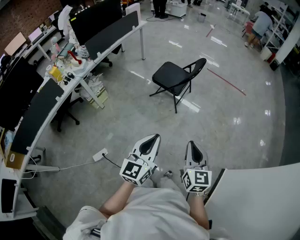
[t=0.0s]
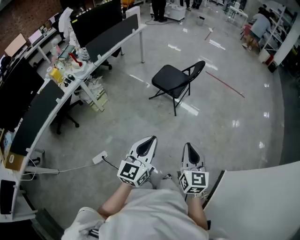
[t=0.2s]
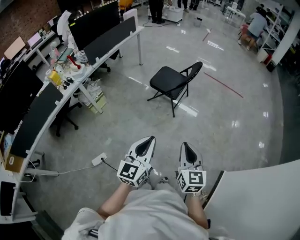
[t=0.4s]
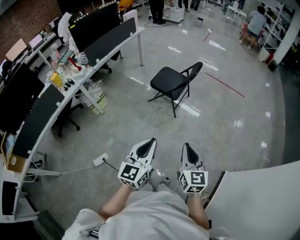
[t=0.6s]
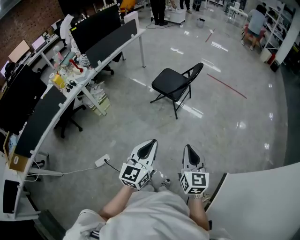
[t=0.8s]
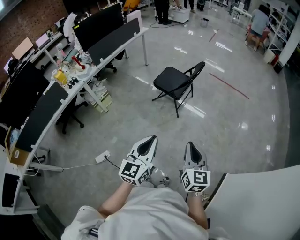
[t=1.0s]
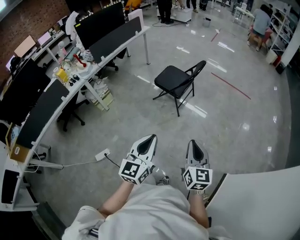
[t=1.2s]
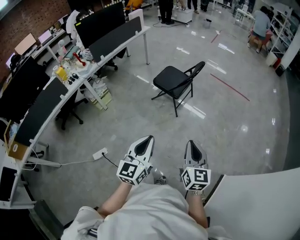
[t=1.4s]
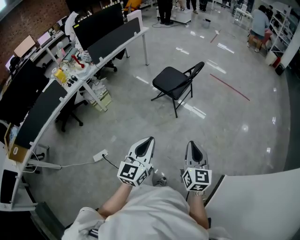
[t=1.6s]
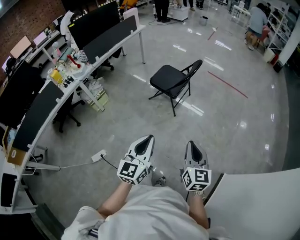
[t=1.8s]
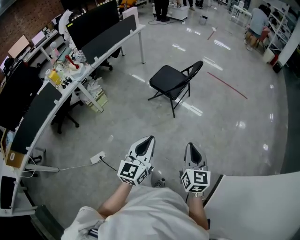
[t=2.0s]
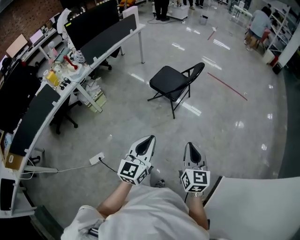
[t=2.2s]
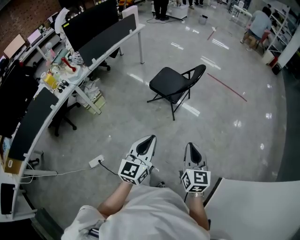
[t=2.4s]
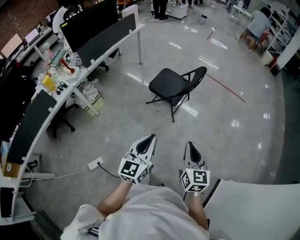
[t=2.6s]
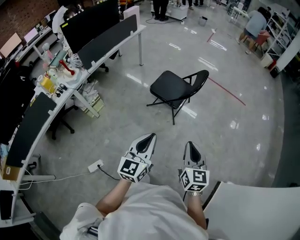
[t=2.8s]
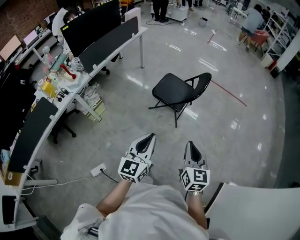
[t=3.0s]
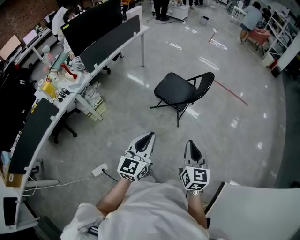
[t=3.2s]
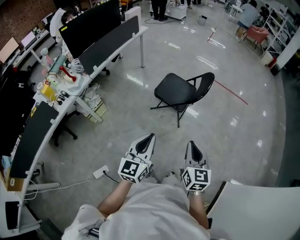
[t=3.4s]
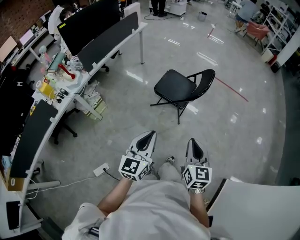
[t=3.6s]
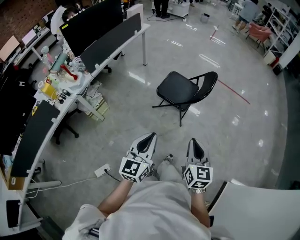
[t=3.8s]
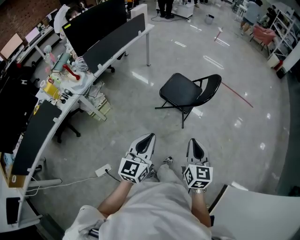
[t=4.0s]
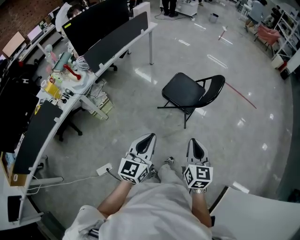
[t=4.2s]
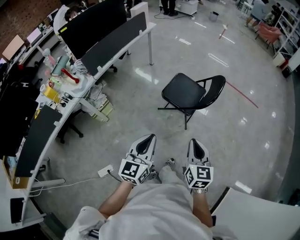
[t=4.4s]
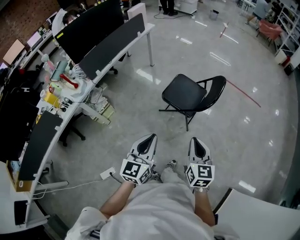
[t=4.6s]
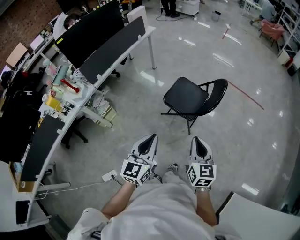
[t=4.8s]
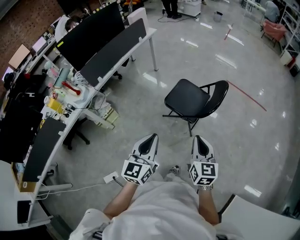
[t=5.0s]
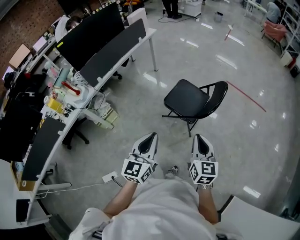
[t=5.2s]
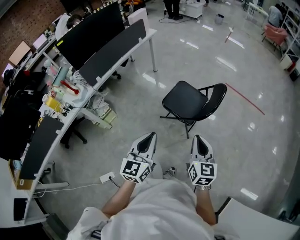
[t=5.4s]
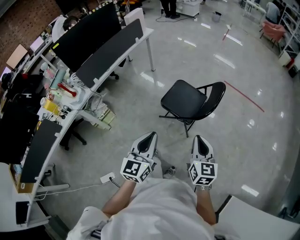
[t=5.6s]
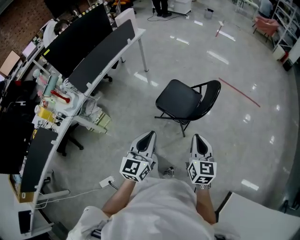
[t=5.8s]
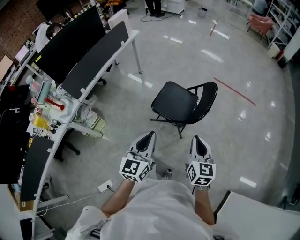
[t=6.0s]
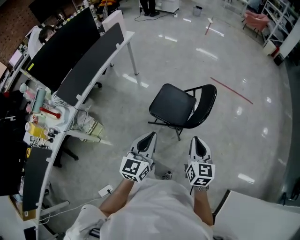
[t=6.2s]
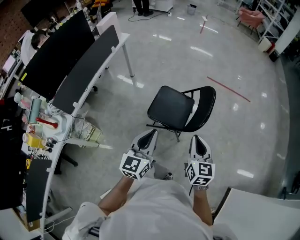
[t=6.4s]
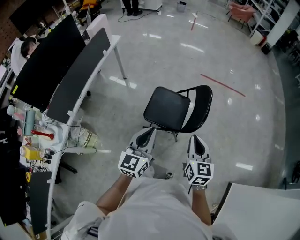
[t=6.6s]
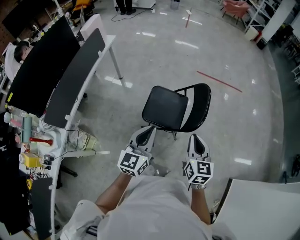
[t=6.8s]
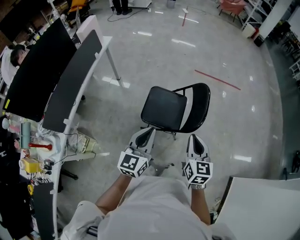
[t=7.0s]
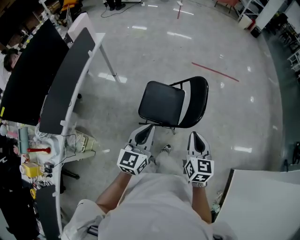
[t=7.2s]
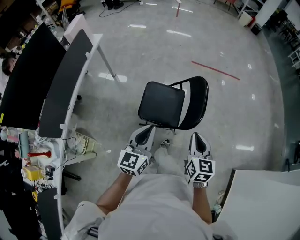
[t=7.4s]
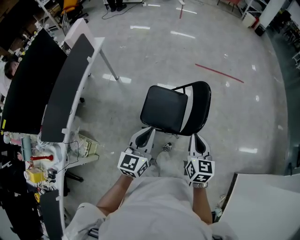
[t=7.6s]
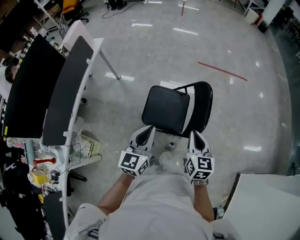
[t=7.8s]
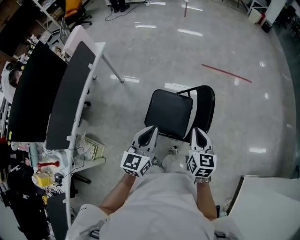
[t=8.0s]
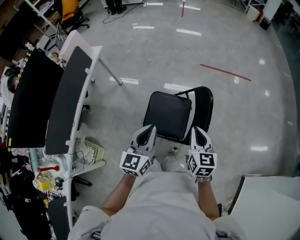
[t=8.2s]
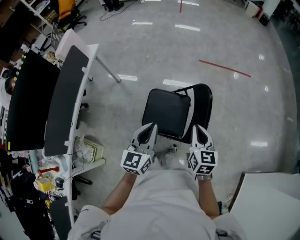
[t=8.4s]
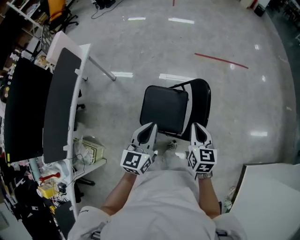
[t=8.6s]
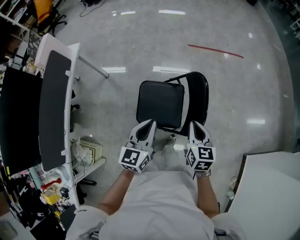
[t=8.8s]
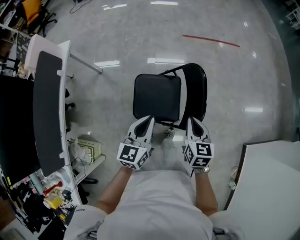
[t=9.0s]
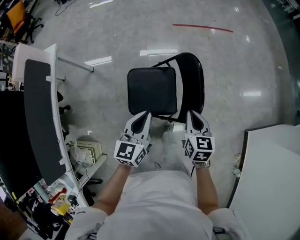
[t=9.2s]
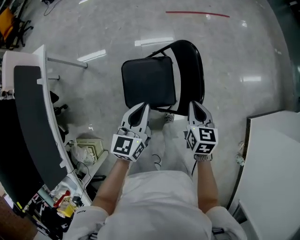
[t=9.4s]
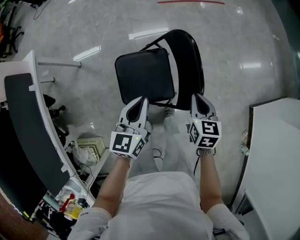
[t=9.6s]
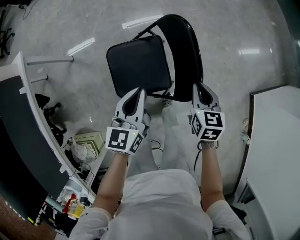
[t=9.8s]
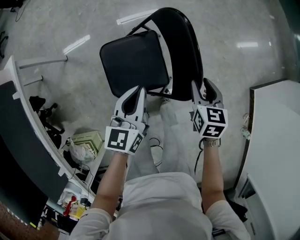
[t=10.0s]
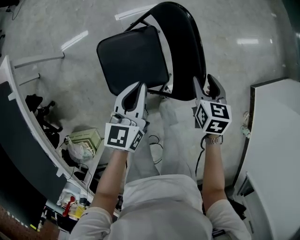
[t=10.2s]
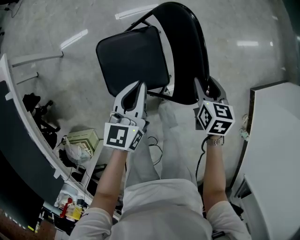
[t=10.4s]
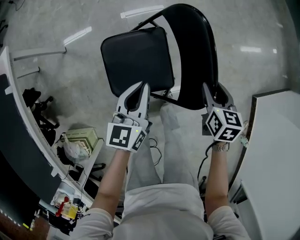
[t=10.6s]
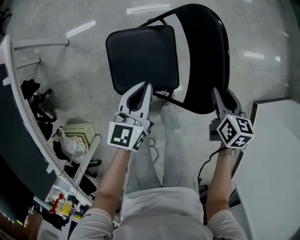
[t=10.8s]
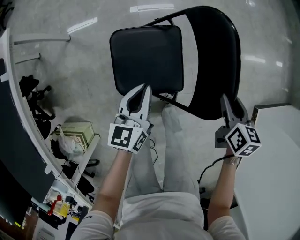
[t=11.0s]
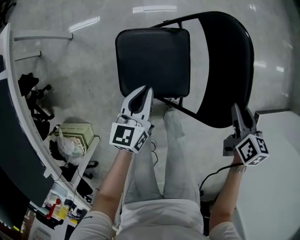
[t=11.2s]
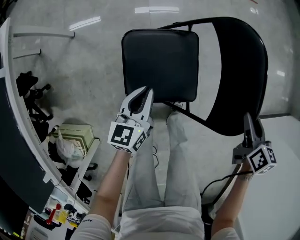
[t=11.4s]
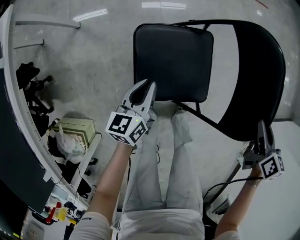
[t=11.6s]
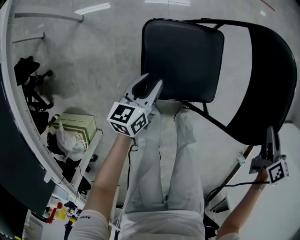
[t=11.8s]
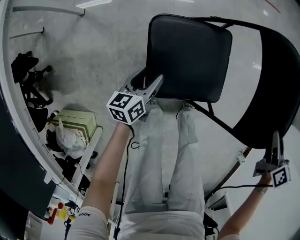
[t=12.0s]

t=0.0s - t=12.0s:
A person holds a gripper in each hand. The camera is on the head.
t=0.0s - t=1.6s: The grippers both shift to the right by some 10 cm.
t=1.6s - t=3.0s: Both grippers move forward and to the left, roughly 25 cm.
t=3.0s - t=4.4s: The two grippers go roughly 10 cm forward and to the left.
t=4.4s - t=6.0s: The left gripper heads forward, covering roughly 20 cm. The right gripper goes some 20 cm forward and to the right.
t=6.0s - t=7.6s: The right gripper goes roughly 20 cm forward and to the left, while the left gripper heads forward, covering approximately 20 cm.
t=7.6s - t=9.0s: Both grippers move forward and downward, roughly 15 cm.
t=9.0s - t=10.4s: The left gripper travels downward and forward by approximately 20 cm. The right gripper moves downward and to the right, roughly 25 cm, swivels about 20 degrees, and opens up.
t=10.4s - t=12.0s: The left gripper travels downward and to the left by some 40 cm, swivels about 30 degrees, and opens its fingers.

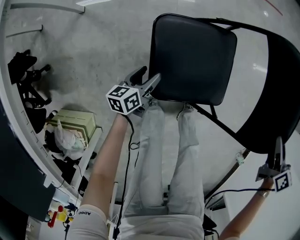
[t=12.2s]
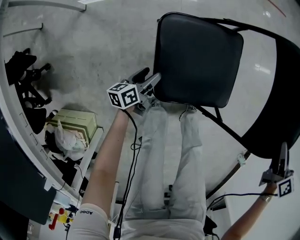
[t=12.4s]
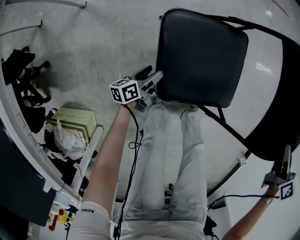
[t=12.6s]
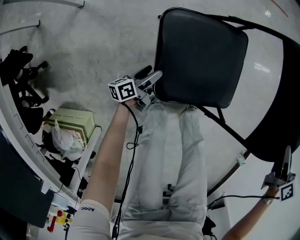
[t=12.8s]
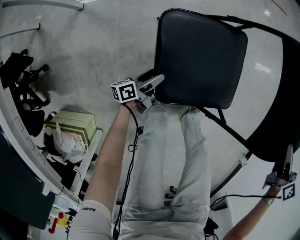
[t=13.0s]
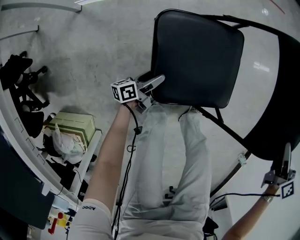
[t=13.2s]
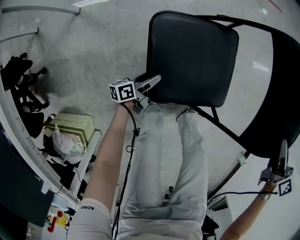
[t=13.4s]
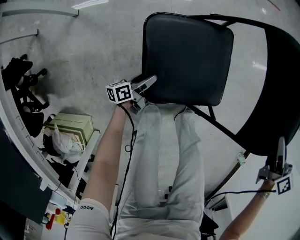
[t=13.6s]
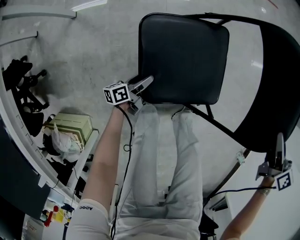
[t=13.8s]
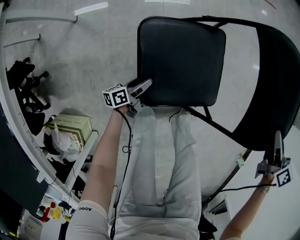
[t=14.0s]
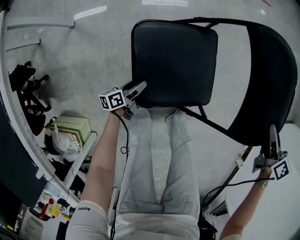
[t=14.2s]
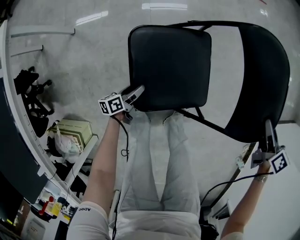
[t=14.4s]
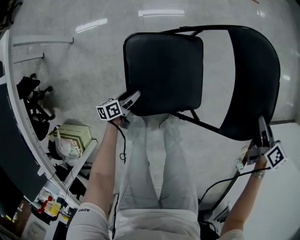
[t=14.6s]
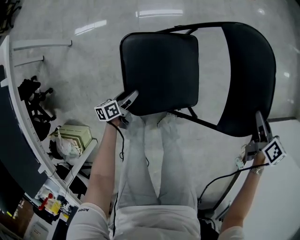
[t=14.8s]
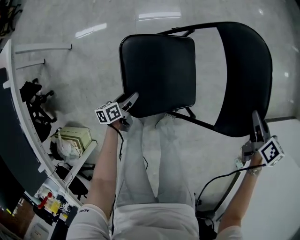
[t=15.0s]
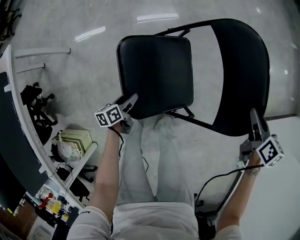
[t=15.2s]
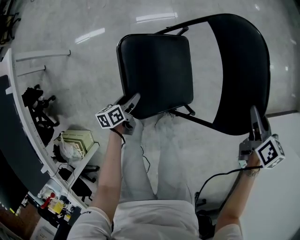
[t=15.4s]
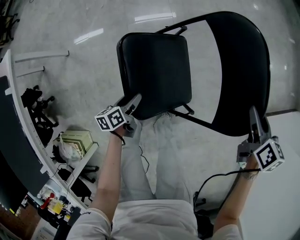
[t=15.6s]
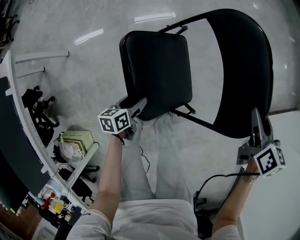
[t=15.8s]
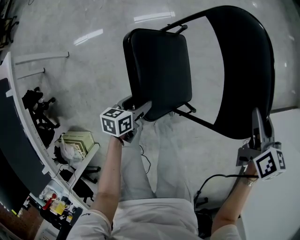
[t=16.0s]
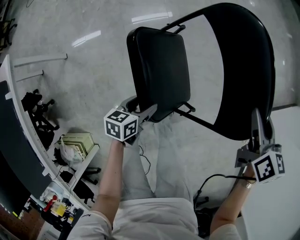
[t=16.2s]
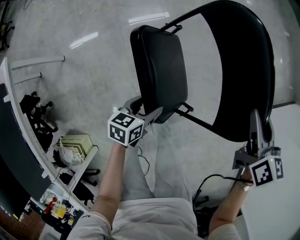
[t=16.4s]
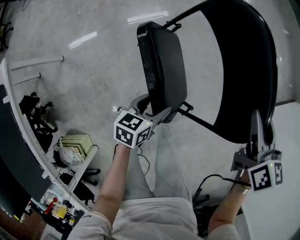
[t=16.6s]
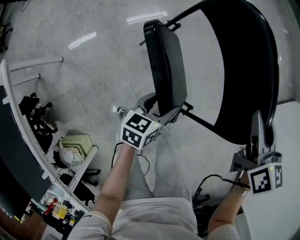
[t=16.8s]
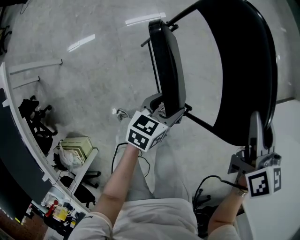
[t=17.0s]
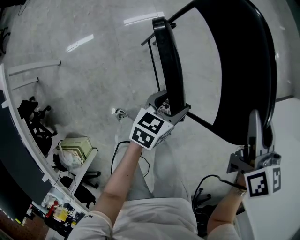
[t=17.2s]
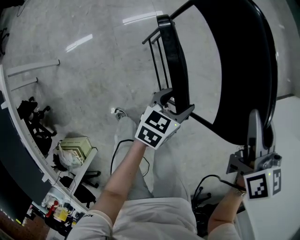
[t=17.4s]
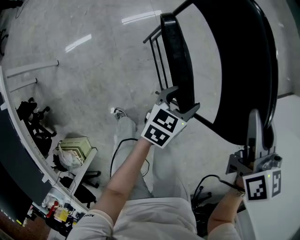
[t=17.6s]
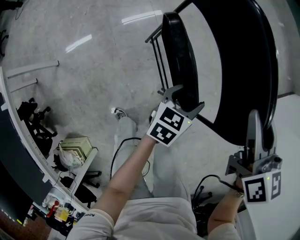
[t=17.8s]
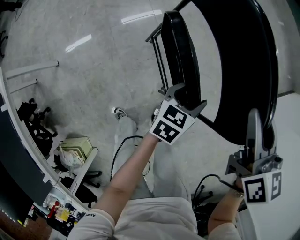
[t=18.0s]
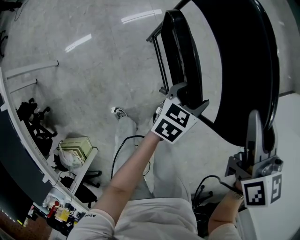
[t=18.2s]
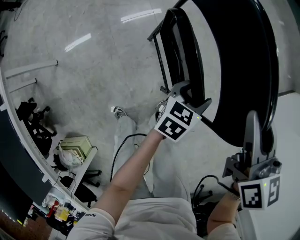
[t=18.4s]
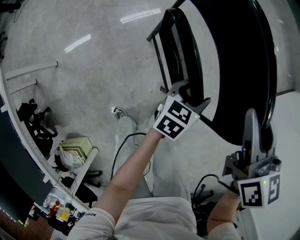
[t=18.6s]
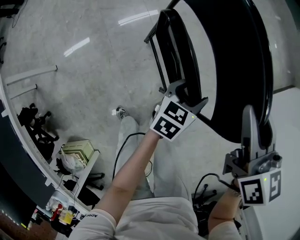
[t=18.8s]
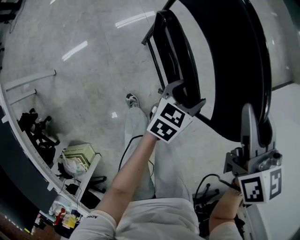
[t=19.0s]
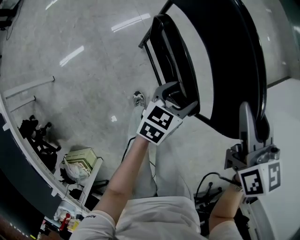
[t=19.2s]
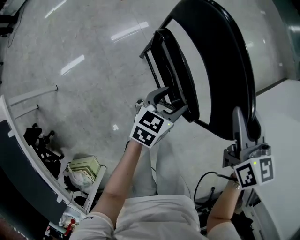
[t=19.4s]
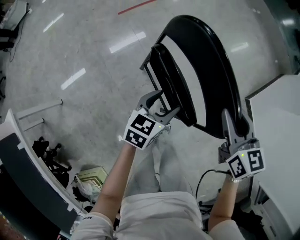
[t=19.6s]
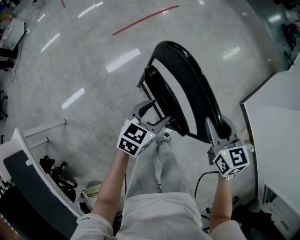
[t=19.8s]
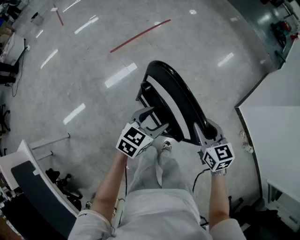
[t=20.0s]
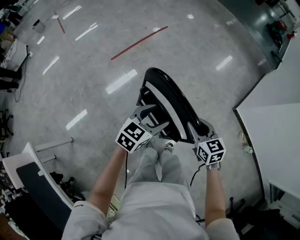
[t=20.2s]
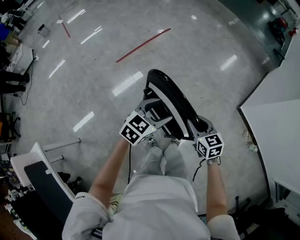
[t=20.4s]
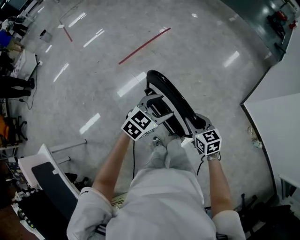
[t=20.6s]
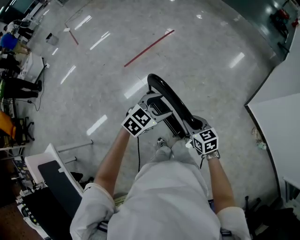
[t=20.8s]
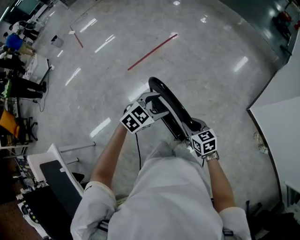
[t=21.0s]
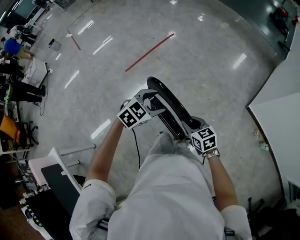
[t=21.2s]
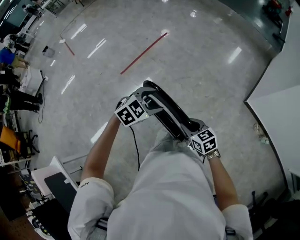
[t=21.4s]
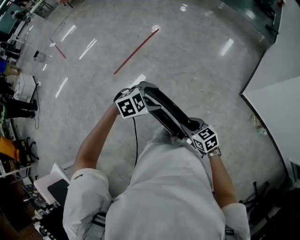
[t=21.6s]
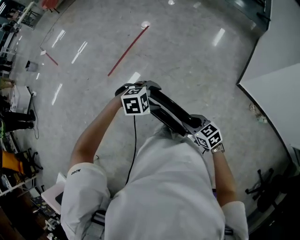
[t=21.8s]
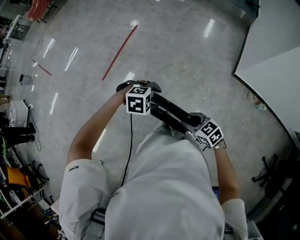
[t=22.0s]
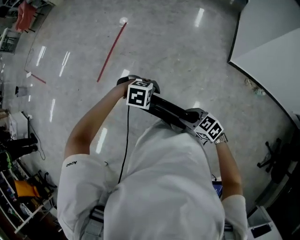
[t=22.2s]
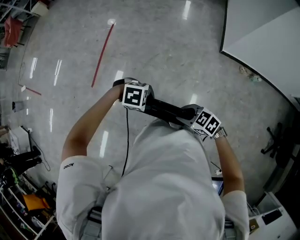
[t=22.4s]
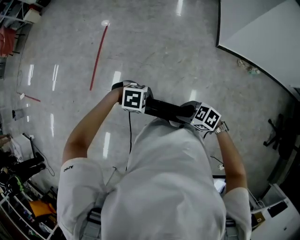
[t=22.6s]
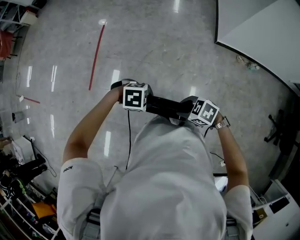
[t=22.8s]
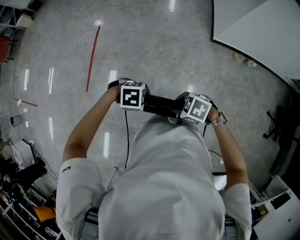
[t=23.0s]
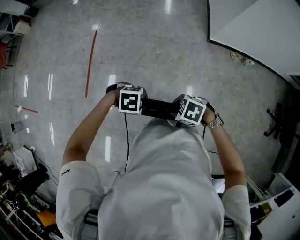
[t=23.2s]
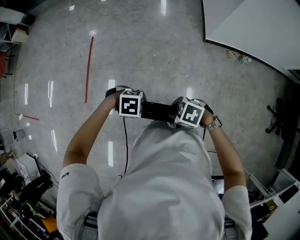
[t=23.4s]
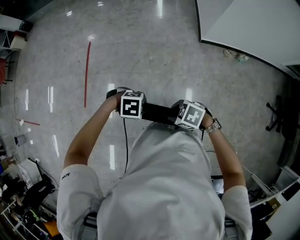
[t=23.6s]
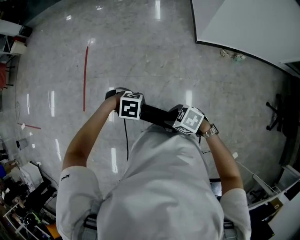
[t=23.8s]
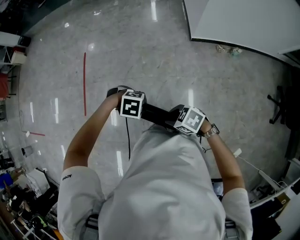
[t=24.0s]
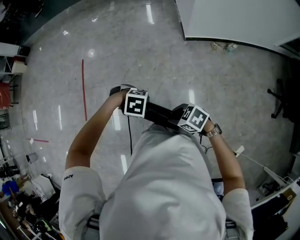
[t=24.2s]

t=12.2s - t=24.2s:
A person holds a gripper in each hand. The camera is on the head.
t=12.2s - t=13.8s: The left gripper goes some 10 cm downward and to the right, and swivels about 20 degrees.
t=13.8s - t=15.2s: The left gripper heads to the right and upward, covering roughly 20 cm, and swivels approximately 20 degrees. The right gripper moves to the right, roughly 20 cm.
t=15.2s - t=16.6s: The left gripper is displaced to the right and upward by approximately 25 cm, and turns by some 40 degrees; the right gripper is displaced upward by about 15 cm.
t=16.6s - t=18.2s: The left gripper travels to the right and forward by some 15 cm.
t=18.2s - t=19.8s: The left gripper moves upward and to the left, approximately 20 cm.
t=19.8s - t=21.2s: The left gripper shifts some 20 cm upward and forward, and changes its angle by about 40 degrees.
t=21.2s - t=22.6s: The left gripper heads downward, covering about 10 cm, turns by approximately 80 degrees, and closes its fingers.
t=22.6s - t=24.2s: The left gripper changes place by roughly 20 cm, and turns by approximately 20 degrees. The right gripper shifts by some 15 cm.
